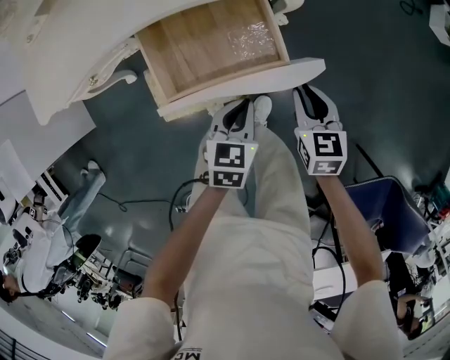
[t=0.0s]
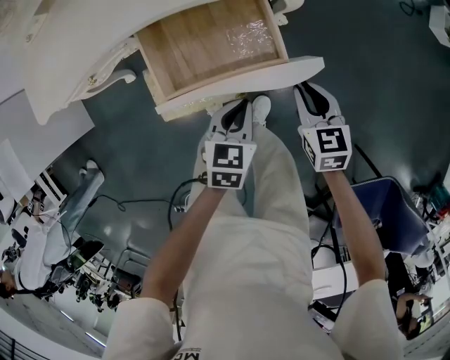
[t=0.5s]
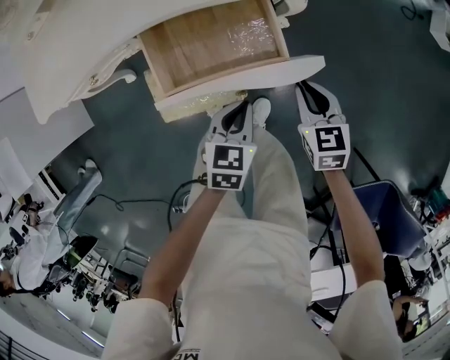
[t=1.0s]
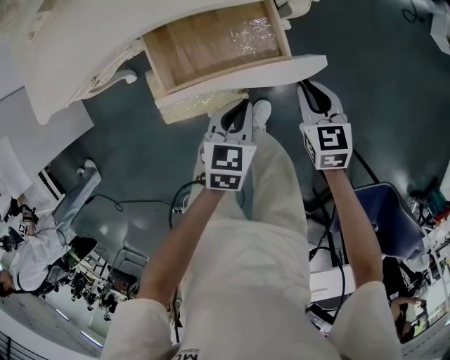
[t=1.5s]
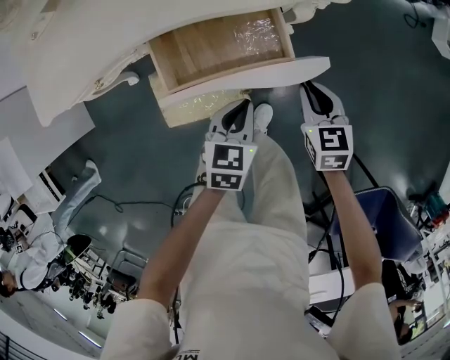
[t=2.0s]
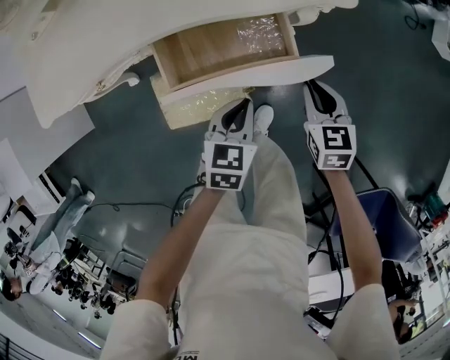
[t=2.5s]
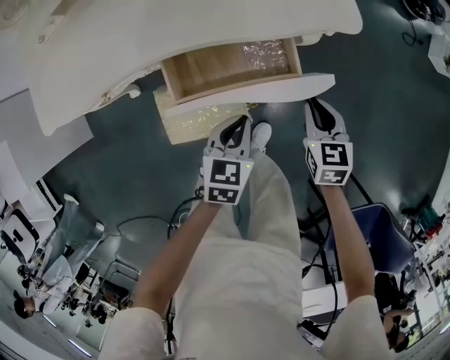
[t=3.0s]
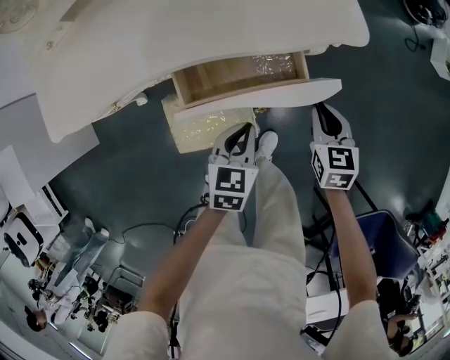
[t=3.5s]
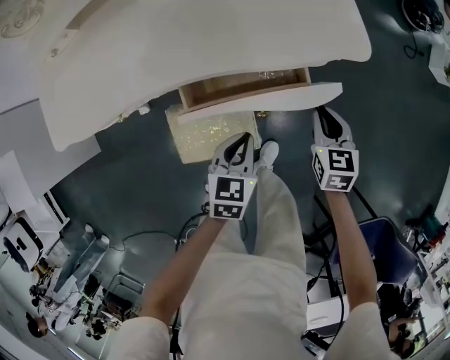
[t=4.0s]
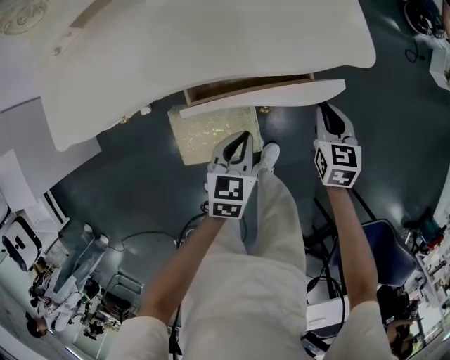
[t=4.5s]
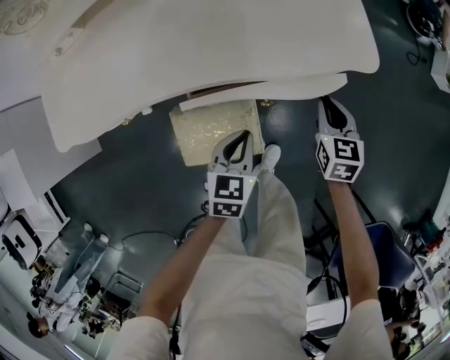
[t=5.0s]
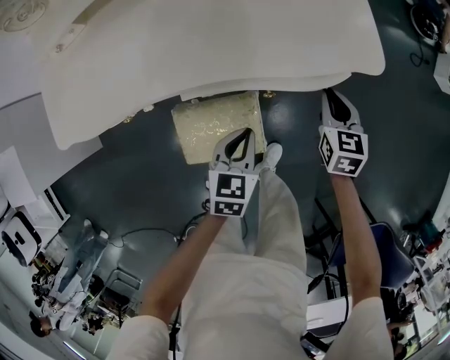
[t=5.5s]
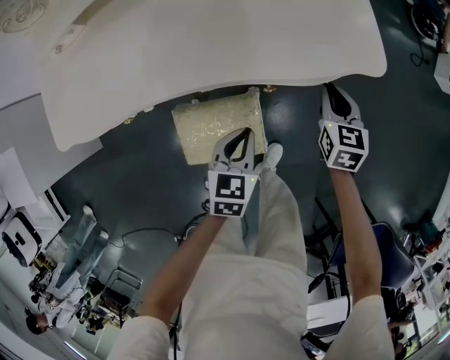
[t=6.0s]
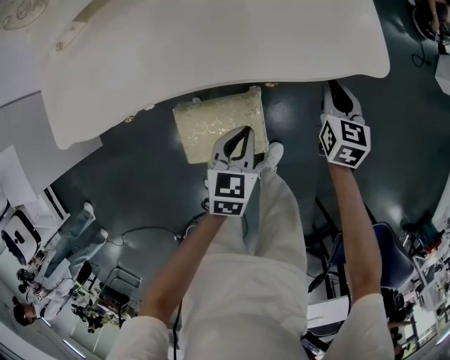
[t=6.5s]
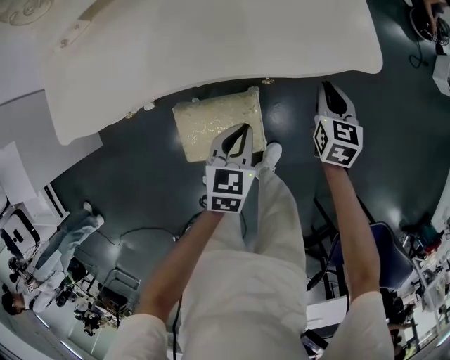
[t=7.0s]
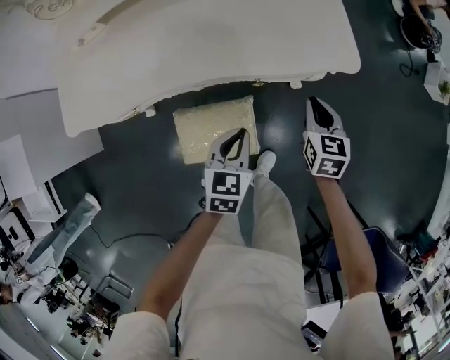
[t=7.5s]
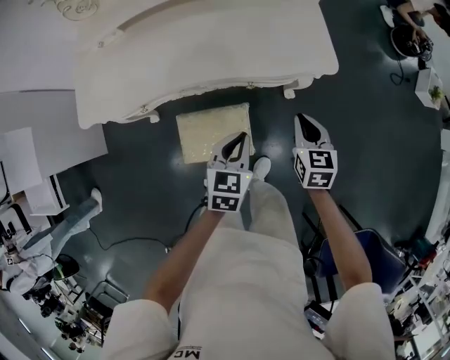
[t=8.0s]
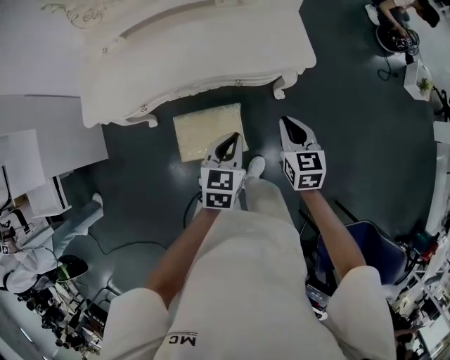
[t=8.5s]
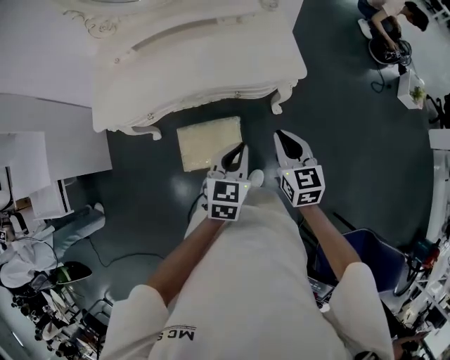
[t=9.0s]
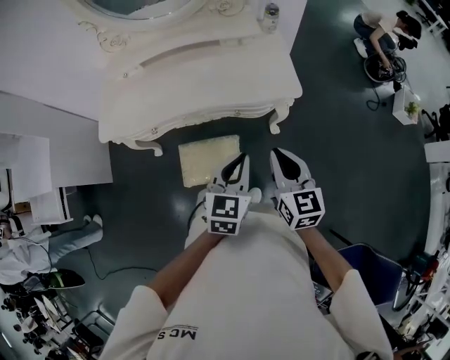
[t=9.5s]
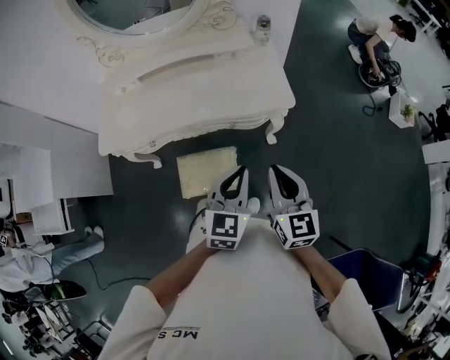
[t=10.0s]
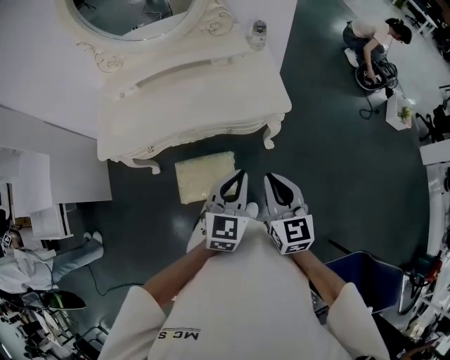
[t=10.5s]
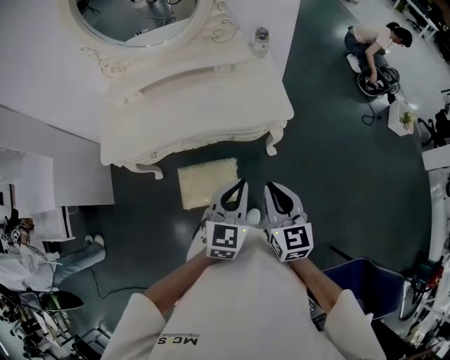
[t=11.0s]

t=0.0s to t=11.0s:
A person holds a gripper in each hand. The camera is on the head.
t=0.0s to t=2.0s: The right gripper heads forward, covering some 5 cm.
t=2.0s to t=3.5s: The left gripper moves some 5 cm.
t=3.5s to t=5.5s: The left gripper moves some 5 cm; the right gripper moves forward, approximately 10 cm.
t=5.5s to t=7.5s: The left gripper is displaced upward by approximately 5 cm, while the right gripper shifts by approximately 5 cm.
t=7.5s to t=9.0s: Both grippers travel together upward and backward, about 20 cm.
t=9.0s to t=11.0s: The right gripper goes about 10 cm upward and backward. The left gripper travels upward by about 10 cm.

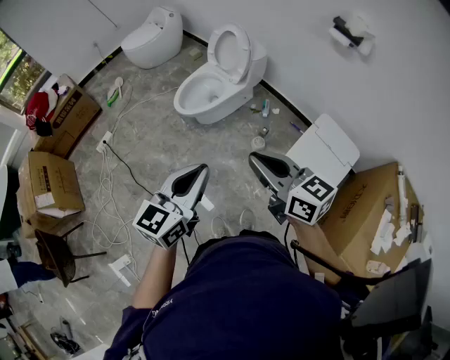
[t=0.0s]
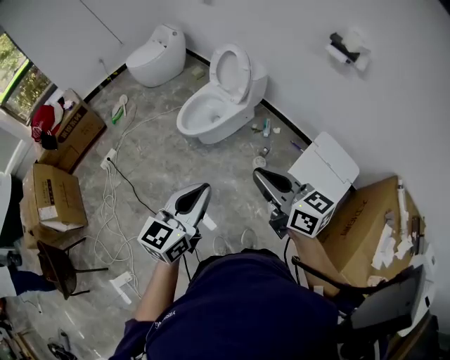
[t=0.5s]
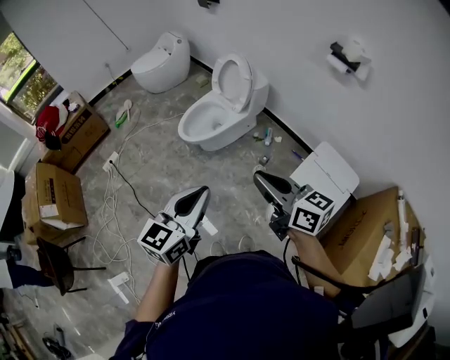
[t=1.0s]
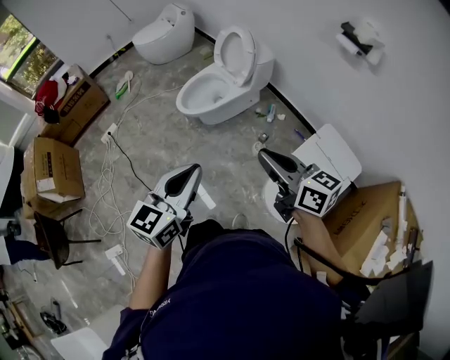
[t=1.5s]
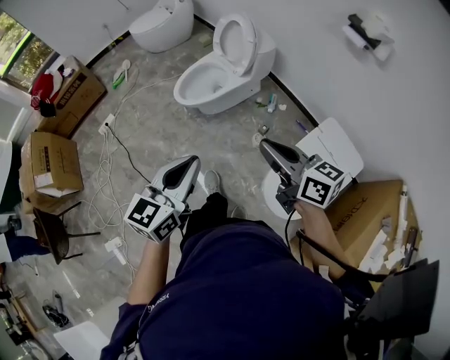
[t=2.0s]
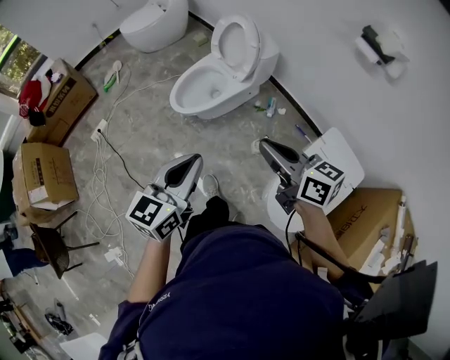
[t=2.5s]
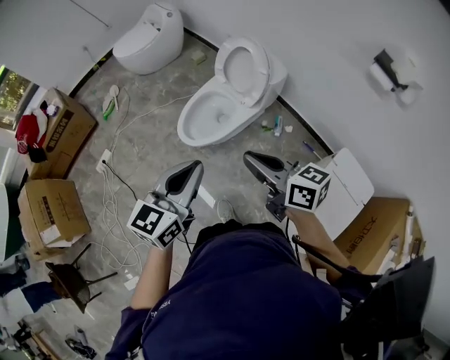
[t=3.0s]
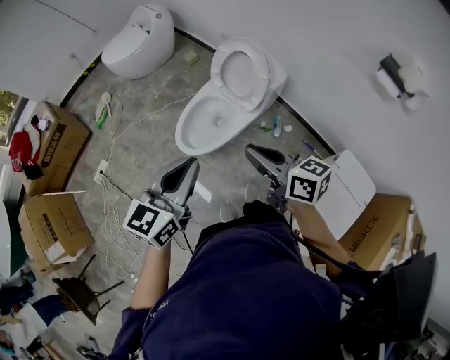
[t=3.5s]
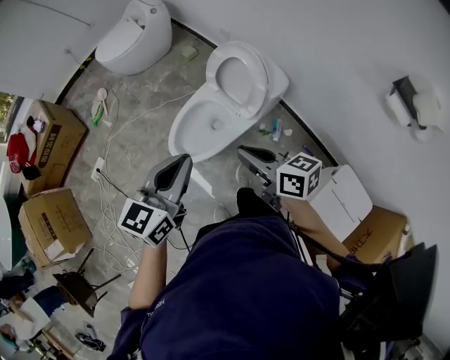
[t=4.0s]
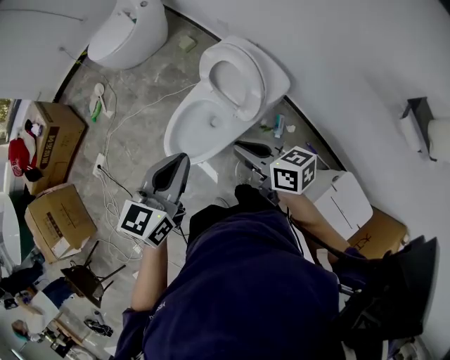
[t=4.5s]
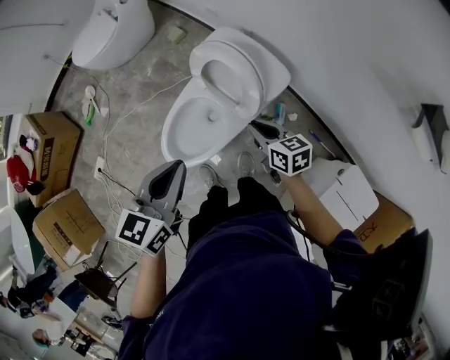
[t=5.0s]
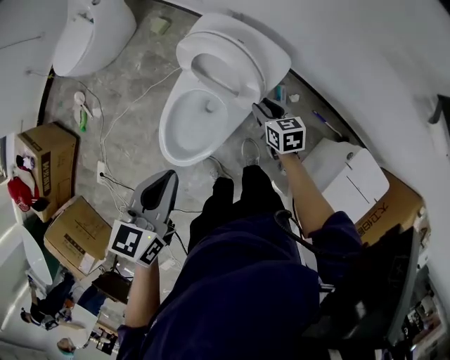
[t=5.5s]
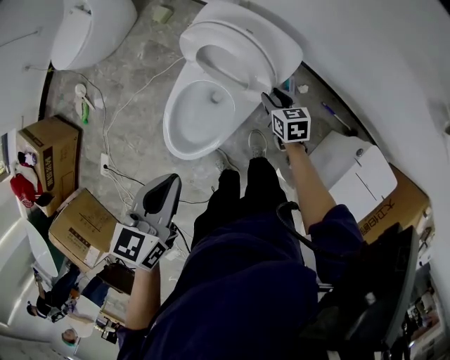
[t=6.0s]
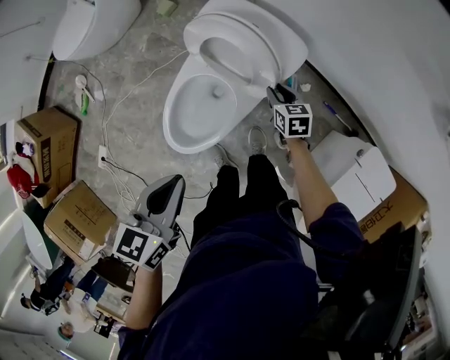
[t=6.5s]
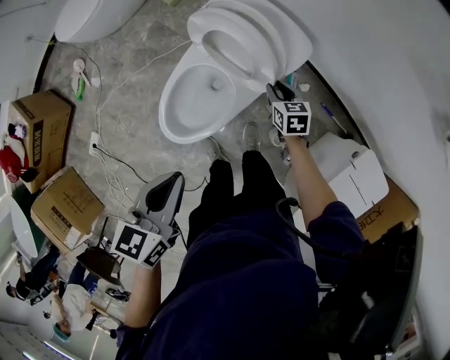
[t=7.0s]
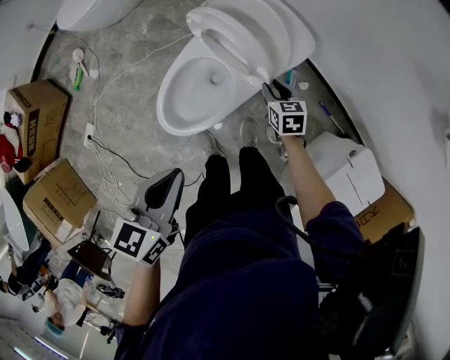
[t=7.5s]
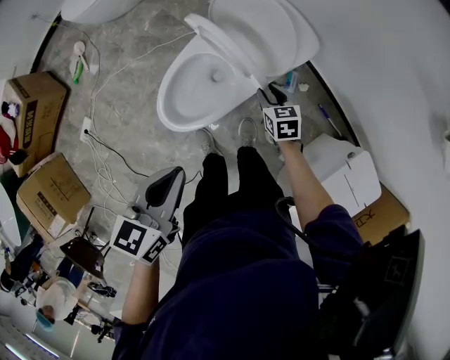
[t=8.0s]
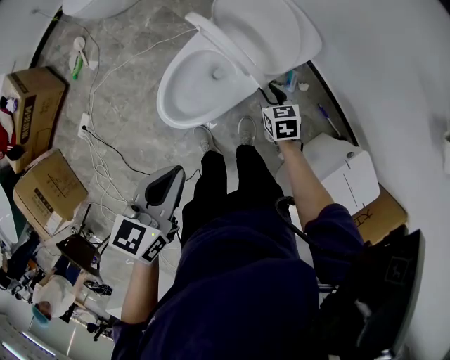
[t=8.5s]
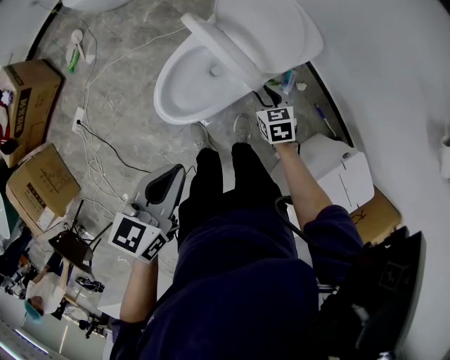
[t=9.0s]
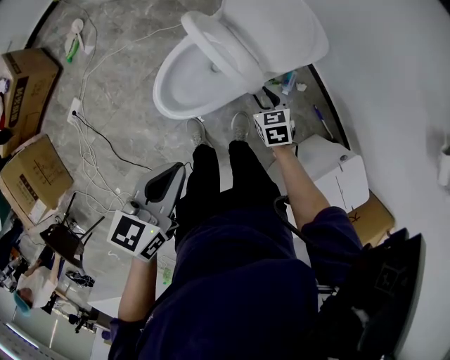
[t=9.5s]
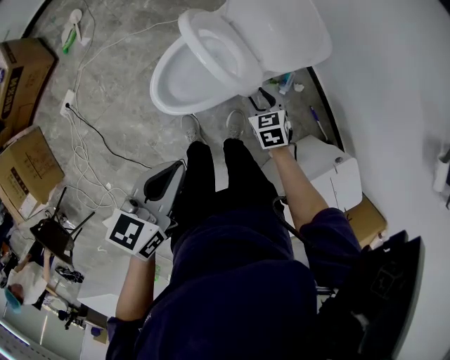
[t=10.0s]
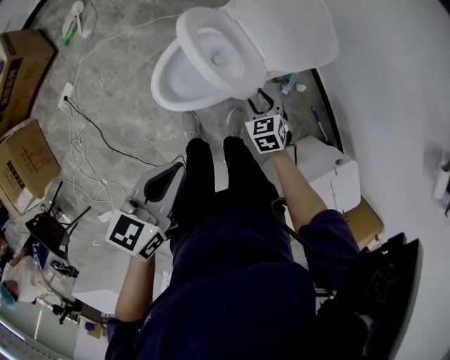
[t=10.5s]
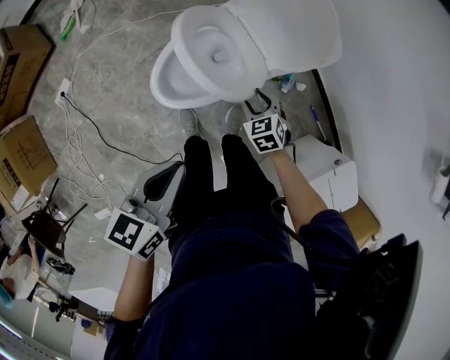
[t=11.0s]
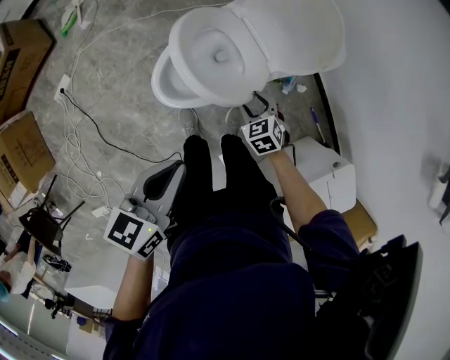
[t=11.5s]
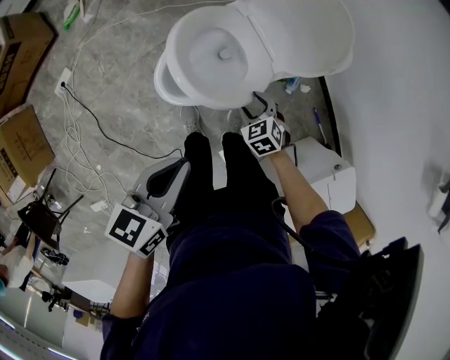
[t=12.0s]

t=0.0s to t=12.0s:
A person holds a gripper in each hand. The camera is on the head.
t=0.0s to t=2.0s: The right gripper is displaced to the right and forward by about 15 cm, while the left gripper moves to the right, some 5 cm.
t=2.0s to t=4.0s: The pair of grippers is taken forward, roughly 50 cm.
t=4.0s to t=6.0s: The left gripper shifts by about 20 cm, and changes its angle by roughly 30 degrees; the right gripper shifts some 35 cm downward, tilts its fingers about 30 degrees downward, and opens its fingers.
t=6.0s to t=8.0s: The right gripper moves backward, approximately 5 cm. Meanwhile the left gripper travels backward by about 10 cm.
t=8.0s to t=10.0s: The right gripper heads backward and to the left, covering some 5 cm, and rotates some 20 degrees.
t=10.0s to t=12.0s: The right gripper goes approximately 5 cm to the left.

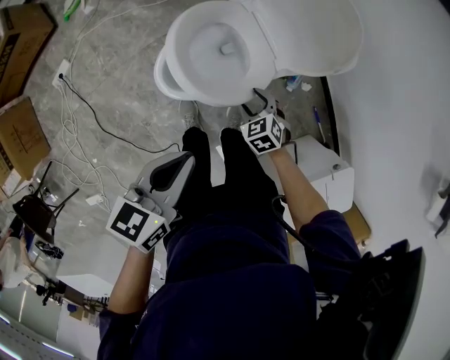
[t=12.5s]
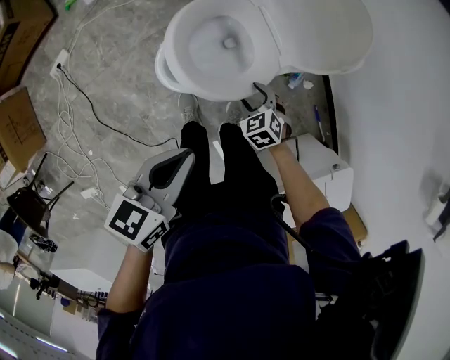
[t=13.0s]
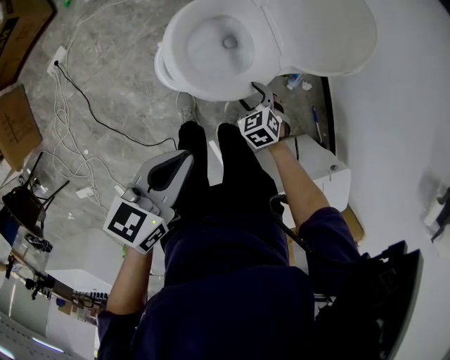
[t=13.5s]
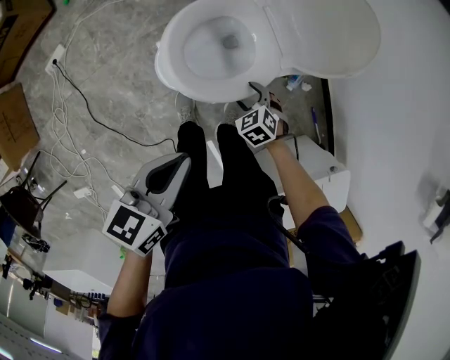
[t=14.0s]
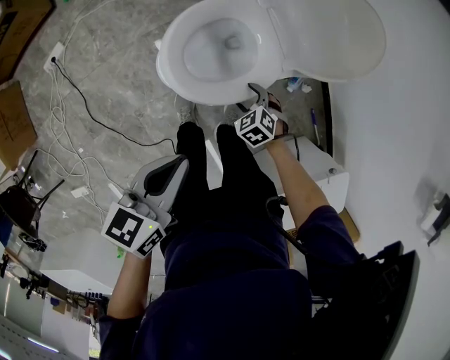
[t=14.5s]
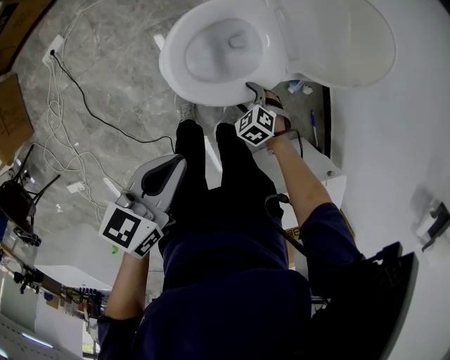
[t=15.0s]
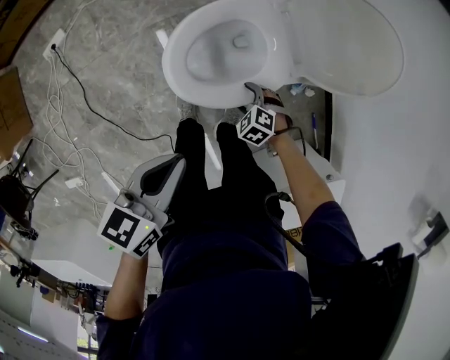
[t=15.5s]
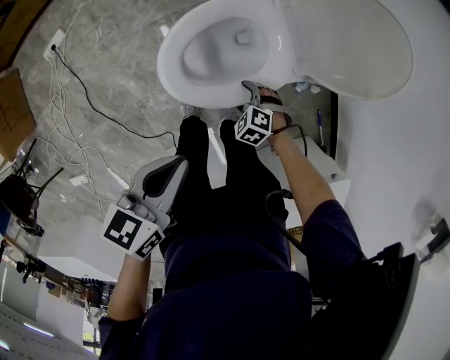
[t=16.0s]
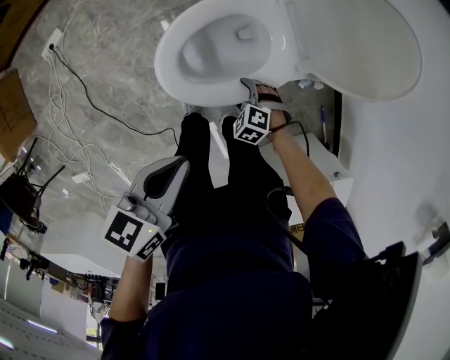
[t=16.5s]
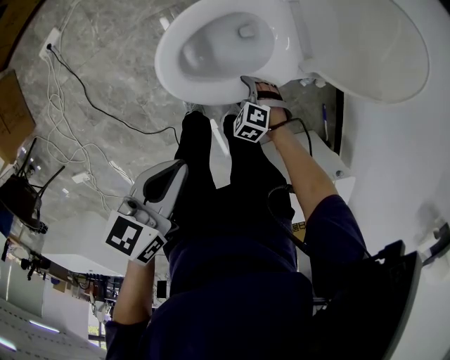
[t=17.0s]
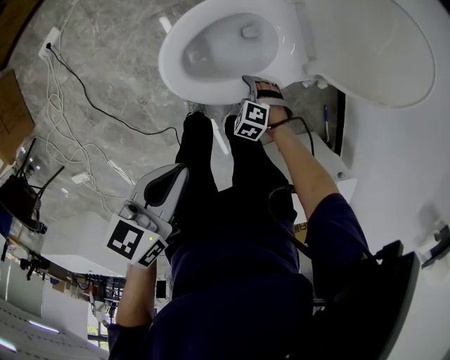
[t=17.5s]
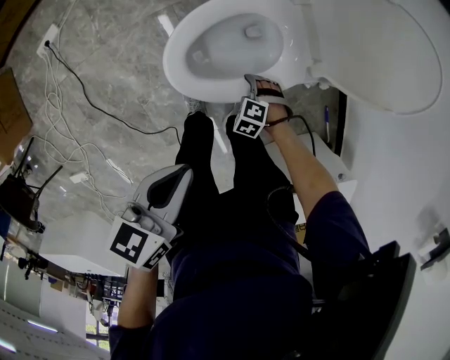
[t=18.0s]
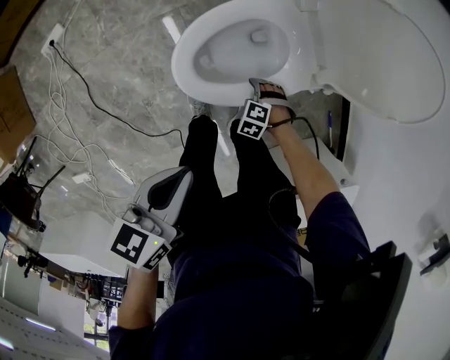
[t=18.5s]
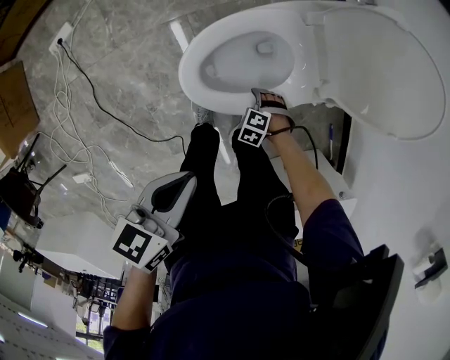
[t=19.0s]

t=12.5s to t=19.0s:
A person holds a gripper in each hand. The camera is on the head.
t=12.5s to t=14.5s: The left gripper moves roughly 5 cm. Meanwhile the right gripper heads downward, covering roughly 5 cm.
t=14.5s to t=17.0s: The right gripper heads downward, covering some 10 cm, and rotates approximately 30 degrees; the left gripper changes place by roughly 5 cm.
t=17.0s to t=19.0s: The right gripper shifts about 10 cm downward.
